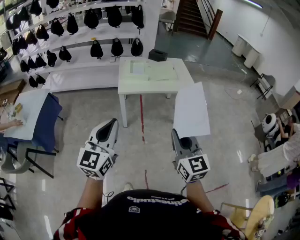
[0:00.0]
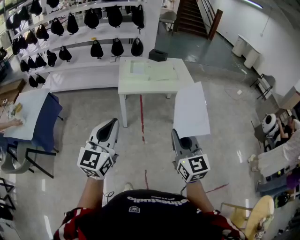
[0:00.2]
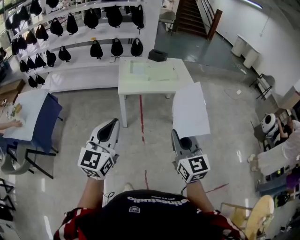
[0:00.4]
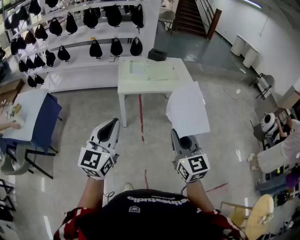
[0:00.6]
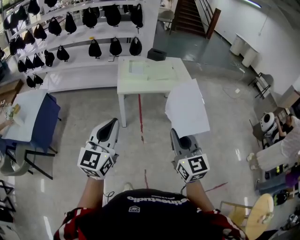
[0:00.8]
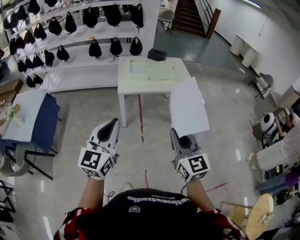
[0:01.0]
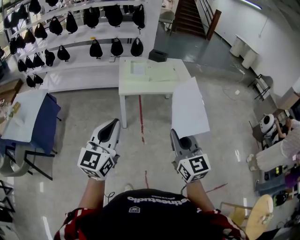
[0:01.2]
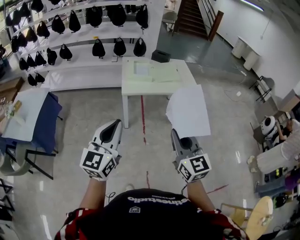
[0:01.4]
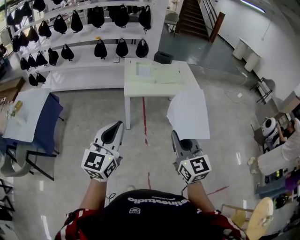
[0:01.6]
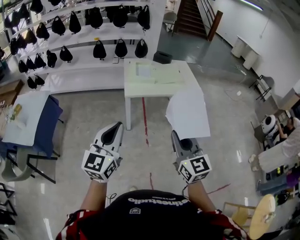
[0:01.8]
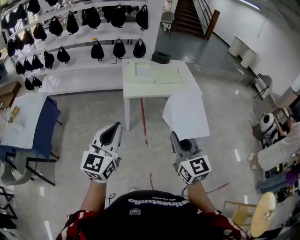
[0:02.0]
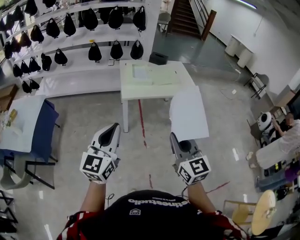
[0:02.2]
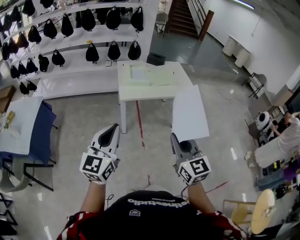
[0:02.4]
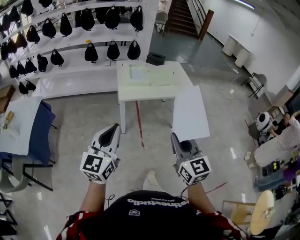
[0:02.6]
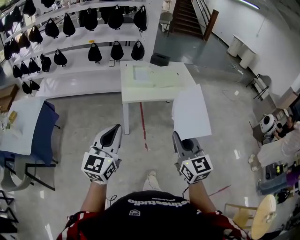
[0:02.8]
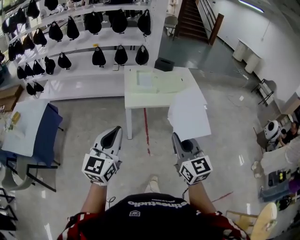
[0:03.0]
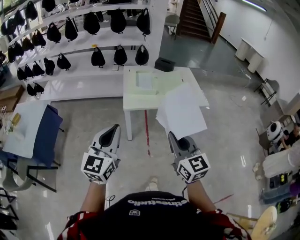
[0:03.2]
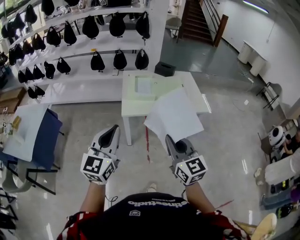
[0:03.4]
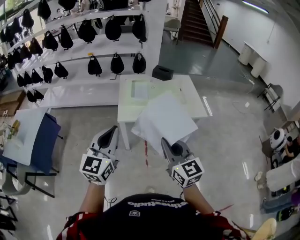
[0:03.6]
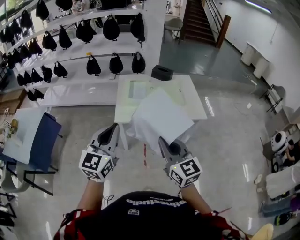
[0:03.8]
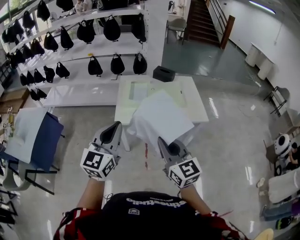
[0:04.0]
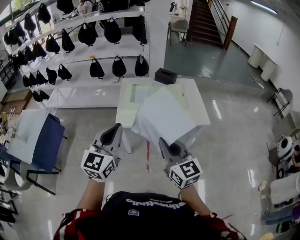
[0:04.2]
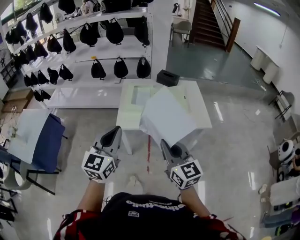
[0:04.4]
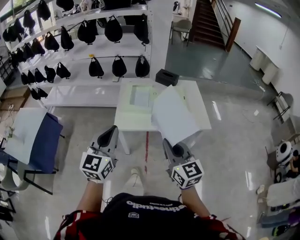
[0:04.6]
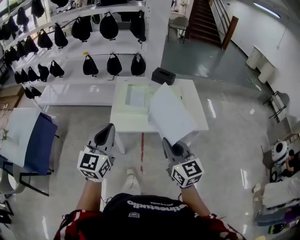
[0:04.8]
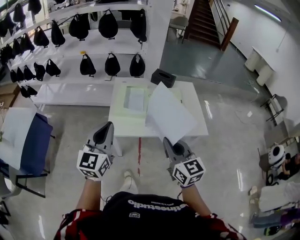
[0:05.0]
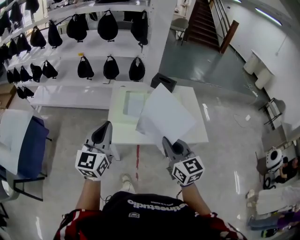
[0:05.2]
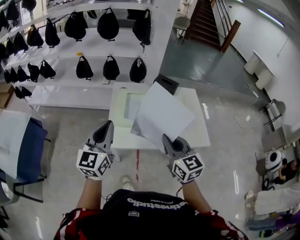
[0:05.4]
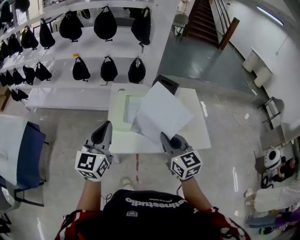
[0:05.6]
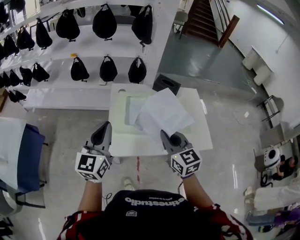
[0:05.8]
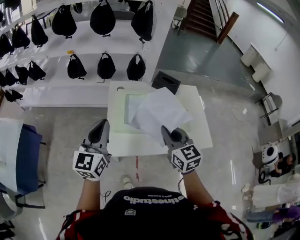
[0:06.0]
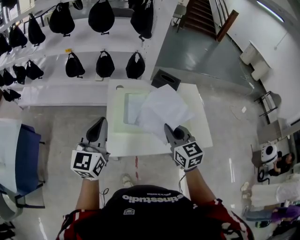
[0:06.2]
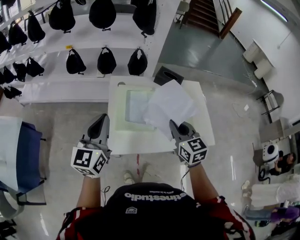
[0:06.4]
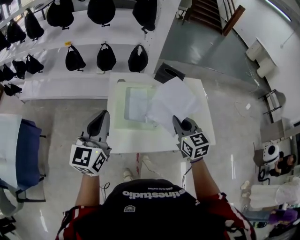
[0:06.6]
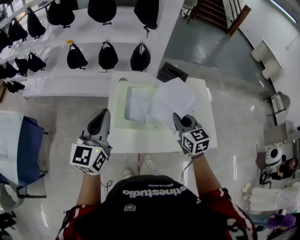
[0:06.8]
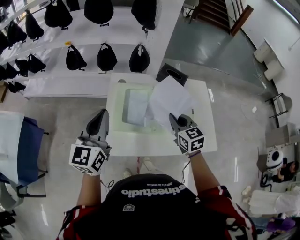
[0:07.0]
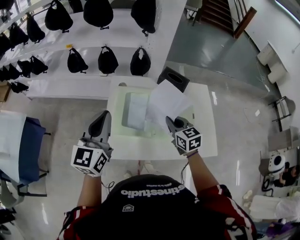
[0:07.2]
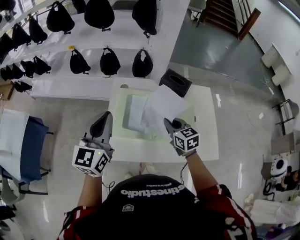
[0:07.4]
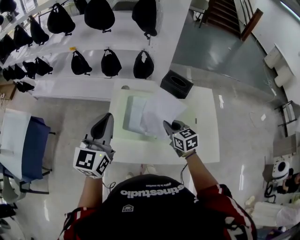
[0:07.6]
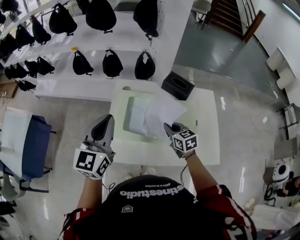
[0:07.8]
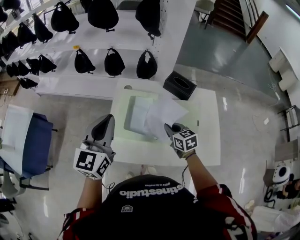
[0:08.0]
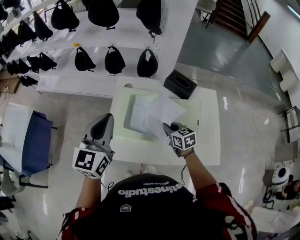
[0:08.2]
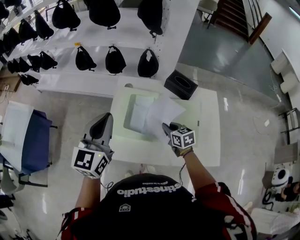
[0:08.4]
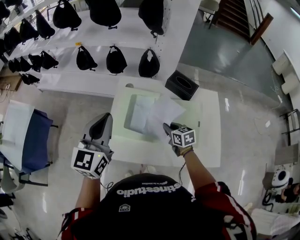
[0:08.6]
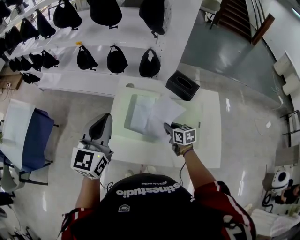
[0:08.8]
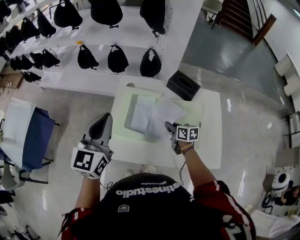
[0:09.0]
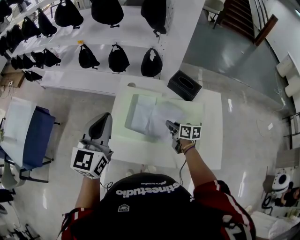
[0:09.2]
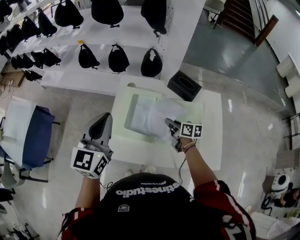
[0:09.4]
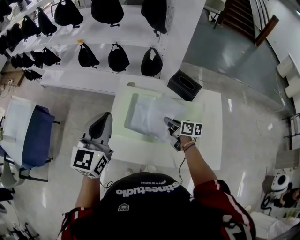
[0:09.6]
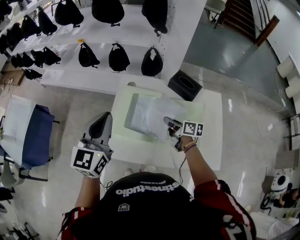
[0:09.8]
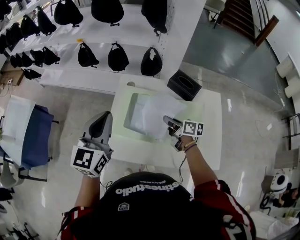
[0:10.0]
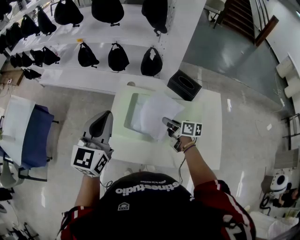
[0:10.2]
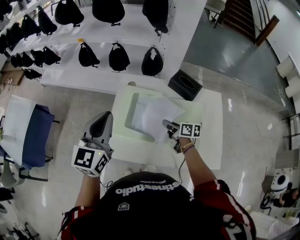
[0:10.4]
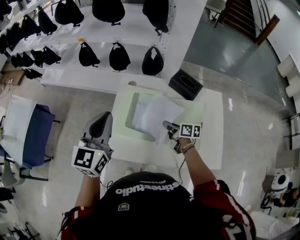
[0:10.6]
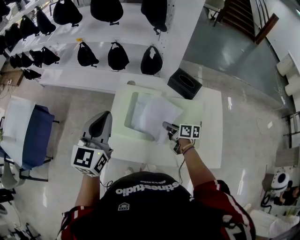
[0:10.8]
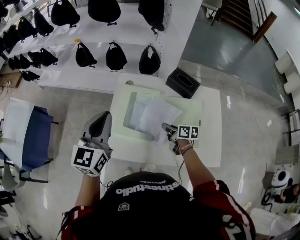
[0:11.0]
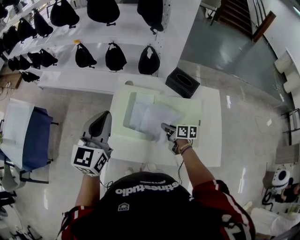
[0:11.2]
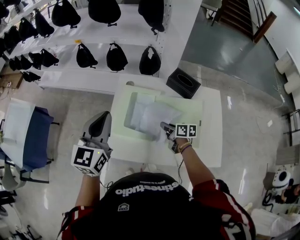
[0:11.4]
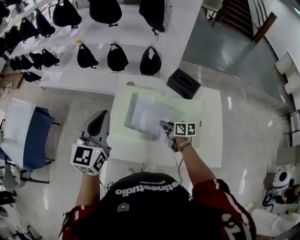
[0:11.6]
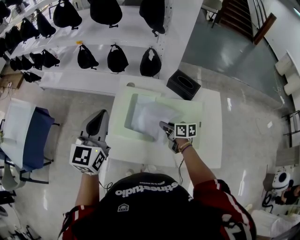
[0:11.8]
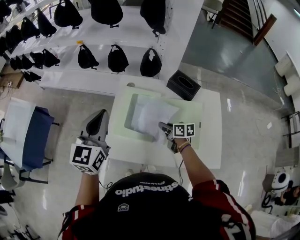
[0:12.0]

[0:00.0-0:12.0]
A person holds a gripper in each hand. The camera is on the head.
0.0 to 1.6 s: The two grippers go roughly 5 cm to the left.
1.6 to 3.0 s: The two grippers go approximately 10 cm forward.
3.0 to 4.4 s: The two grippers go approximately 20 cm forward and to the right.
4.4 to 6.0 s: Both grippers move forward, approximately 30 cm.
6.0 to 7.6 s: The left gripper travels to the right and forward by about 10 cm; the right gripper goes roughly 20 cm downward, forward and to the right, and swivels some 20 degrees.
7.6 to 9.0 s: The right gripper is displaced downward by some 10 cm, and changes its angle by roughly 30 degrees.
10.4 to 12.0 s: The grippers stay close to where they were, moving slightly.

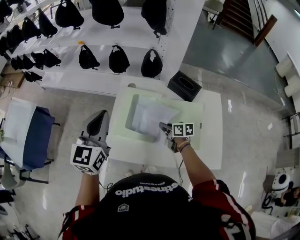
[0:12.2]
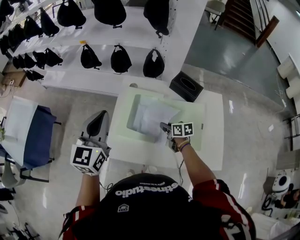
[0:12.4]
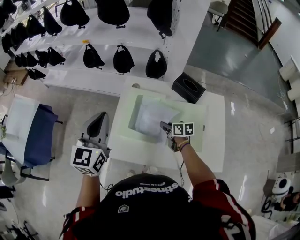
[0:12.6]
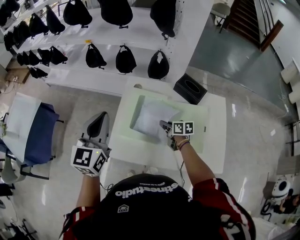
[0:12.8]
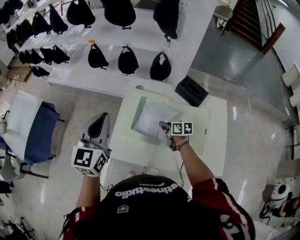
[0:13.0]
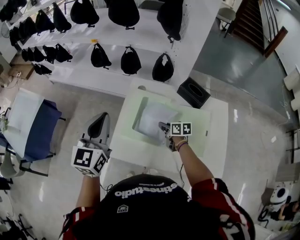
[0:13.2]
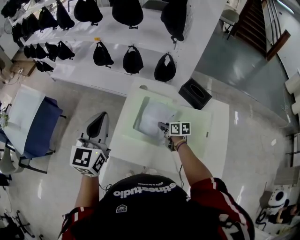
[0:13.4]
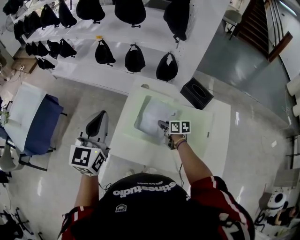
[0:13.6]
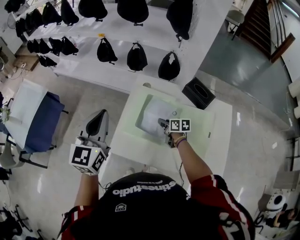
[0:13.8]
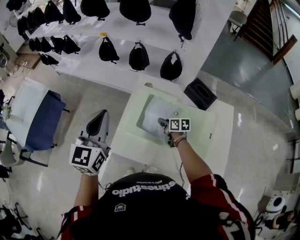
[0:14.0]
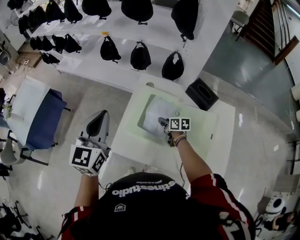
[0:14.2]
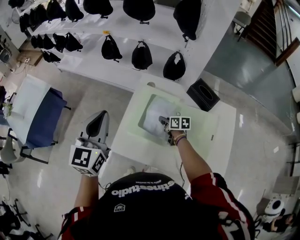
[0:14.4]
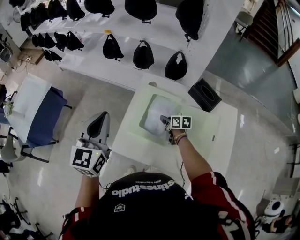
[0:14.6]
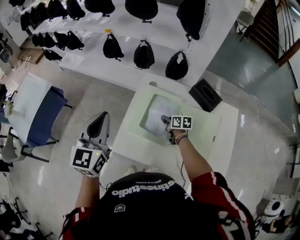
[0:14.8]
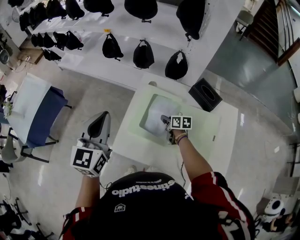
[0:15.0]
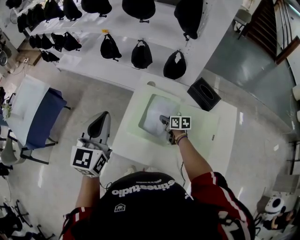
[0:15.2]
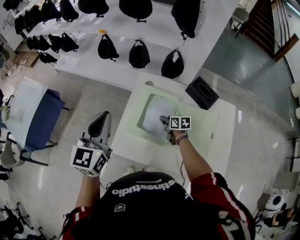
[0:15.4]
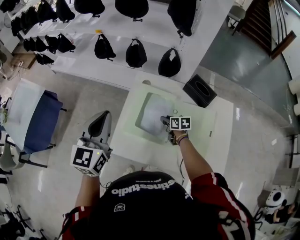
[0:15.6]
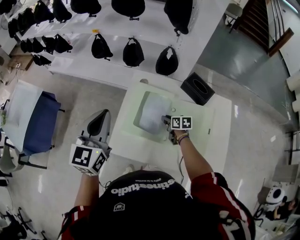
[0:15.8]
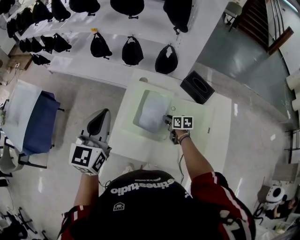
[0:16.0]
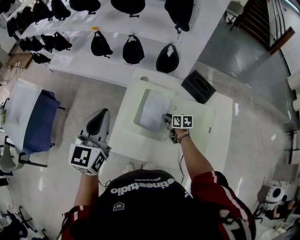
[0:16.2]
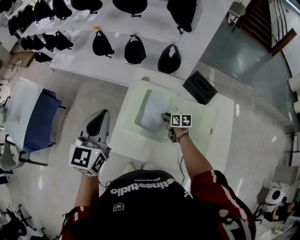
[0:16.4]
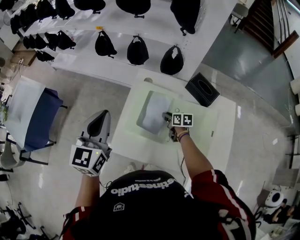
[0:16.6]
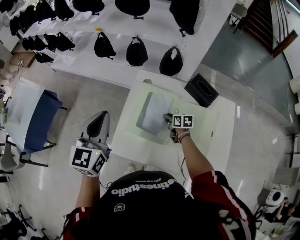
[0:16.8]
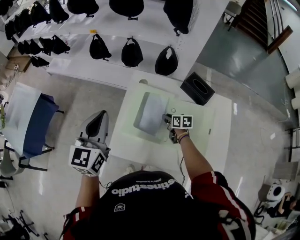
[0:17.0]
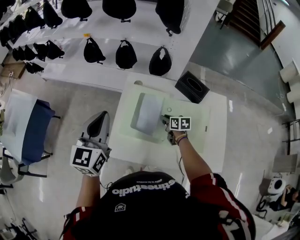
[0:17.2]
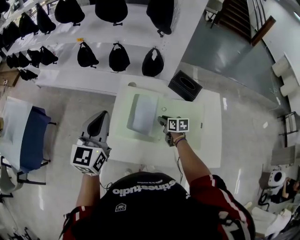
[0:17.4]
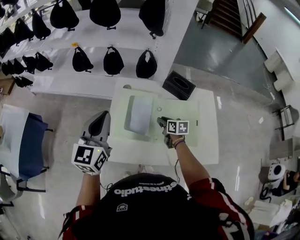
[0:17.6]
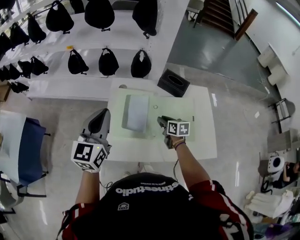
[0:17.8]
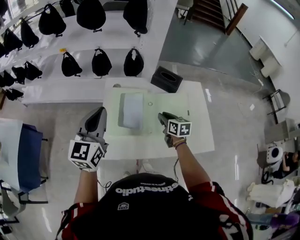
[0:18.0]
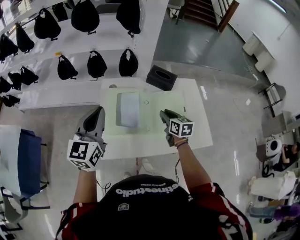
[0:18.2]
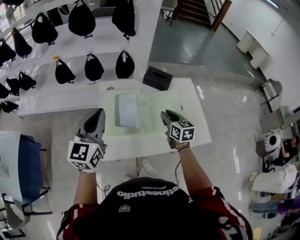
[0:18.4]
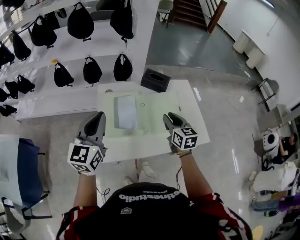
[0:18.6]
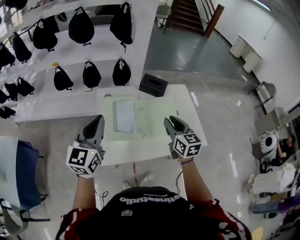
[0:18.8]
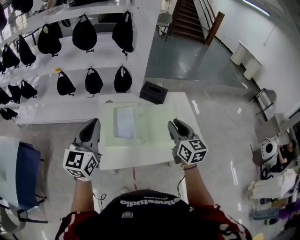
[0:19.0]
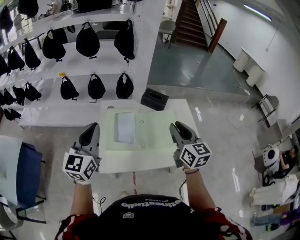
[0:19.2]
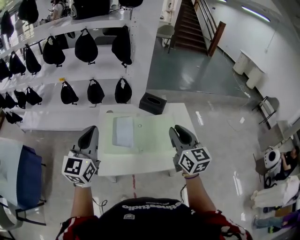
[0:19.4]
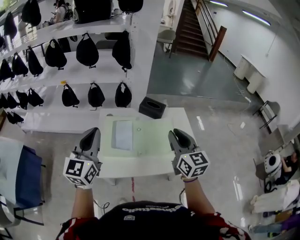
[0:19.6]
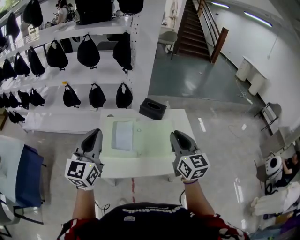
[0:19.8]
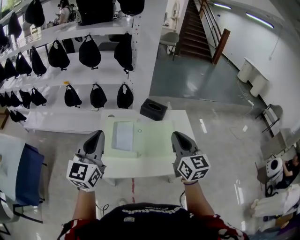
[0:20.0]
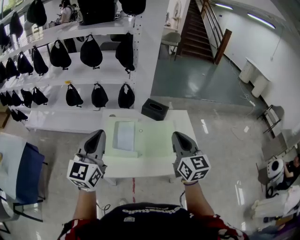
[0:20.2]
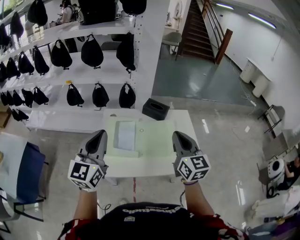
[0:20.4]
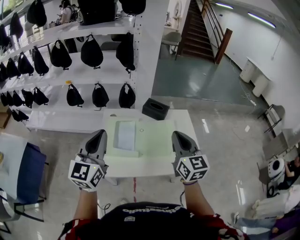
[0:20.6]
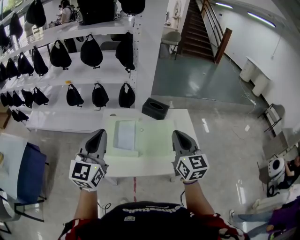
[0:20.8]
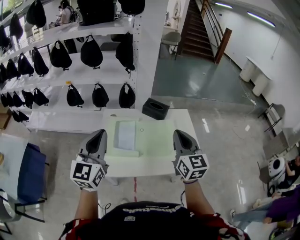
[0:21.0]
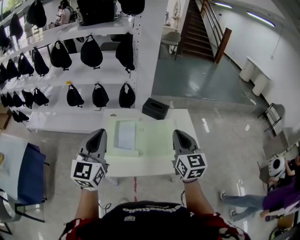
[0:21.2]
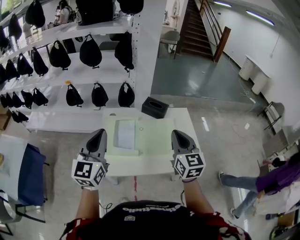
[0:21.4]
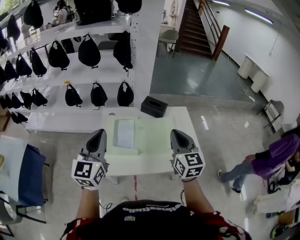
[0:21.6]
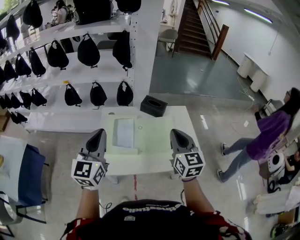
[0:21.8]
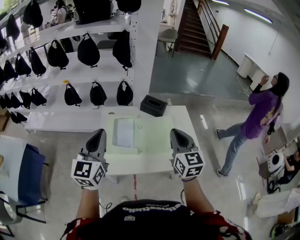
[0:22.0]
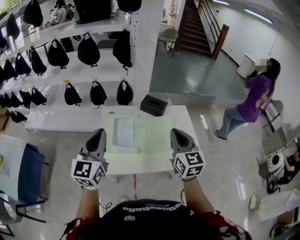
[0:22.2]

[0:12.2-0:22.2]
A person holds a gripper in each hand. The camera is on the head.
12.2 to 13.6 s: The right gripper heads forward, covering about 5 cm.
13.6 to 15.0 s: The grippers stay close to where they were, moving slightly.
15.0 to 16.4 s: The right gripper opens up.
16.4 to 18.0 s: The right gripper moves upward, about 15 cm, and rotates roughly 30 degrees.
18.0 to 19.4 s: The left gripper travels upward and backward by some 10 cm; the right gripper heads upward and backward, covering about 30 cm, and changes its angle by about 30 degrees.
19.4 to 20.8 s: The right gripper closes its fingers. Meanwhile the left gripper shifts by some 5 cm.
20.8 to 22.2 s: The grippers move only a little.

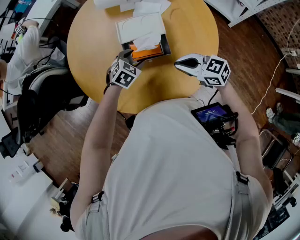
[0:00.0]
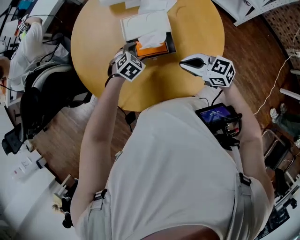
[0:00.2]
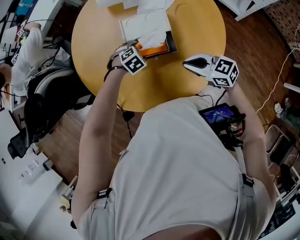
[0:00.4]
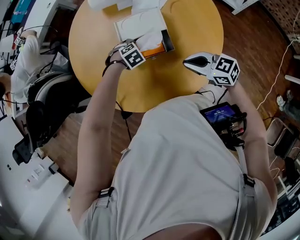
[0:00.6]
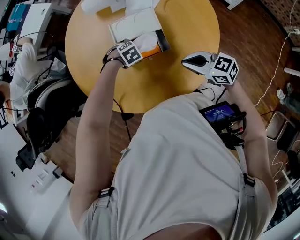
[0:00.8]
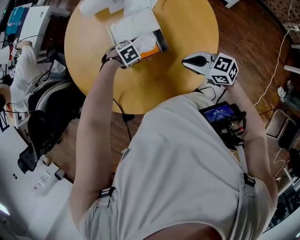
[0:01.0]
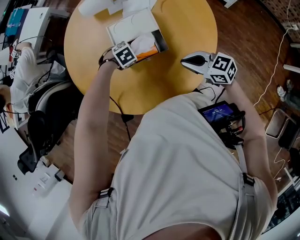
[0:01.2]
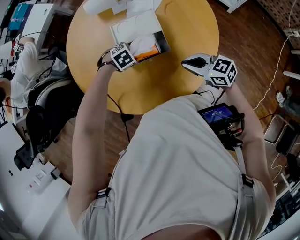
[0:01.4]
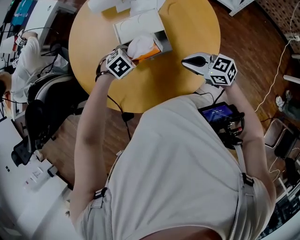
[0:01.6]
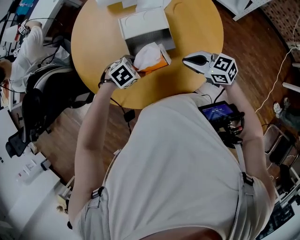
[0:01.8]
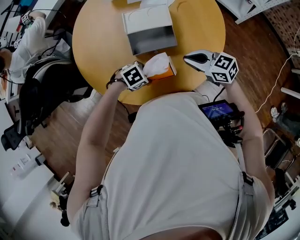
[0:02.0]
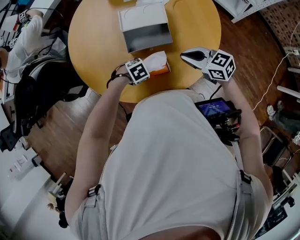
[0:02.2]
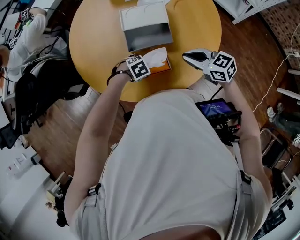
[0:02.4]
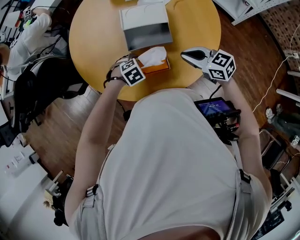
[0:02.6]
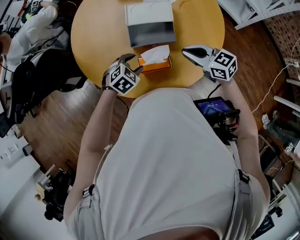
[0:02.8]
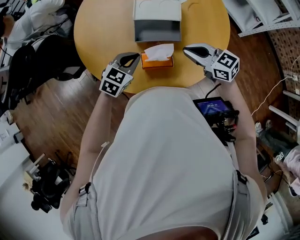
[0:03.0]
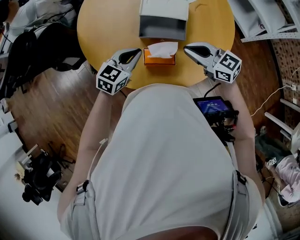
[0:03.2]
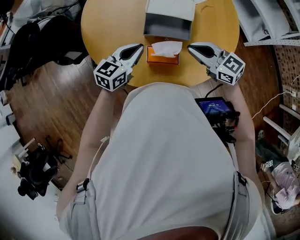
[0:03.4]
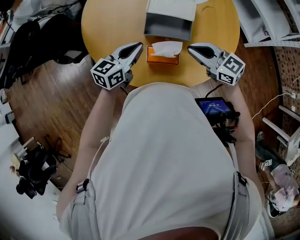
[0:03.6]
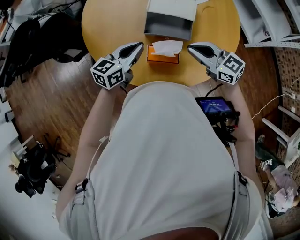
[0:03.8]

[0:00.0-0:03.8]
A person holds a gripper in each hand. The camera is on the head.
0.0 to 1.2 s: The left gripper shifts roughly 10 cm downward, and changes its angle by about 40 degrees.
1.2 to 2.6 s: The left gripper travels upward and back again, about 10 cm each way.
2.6 to 3.8 s: The left gripper is displaced upward by roughly 20 cm, tips its fingers upward by about 60 degrees, and closes; the right gripper is displaced upward by about 5 cm.
